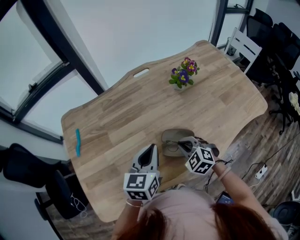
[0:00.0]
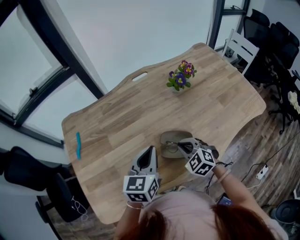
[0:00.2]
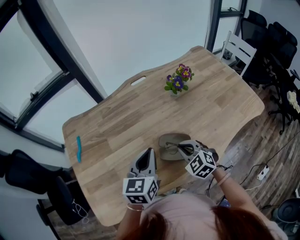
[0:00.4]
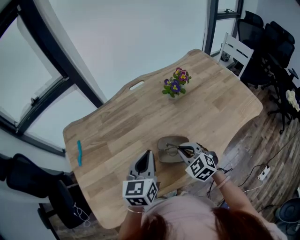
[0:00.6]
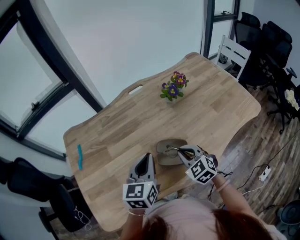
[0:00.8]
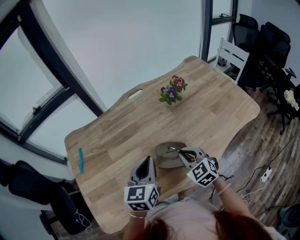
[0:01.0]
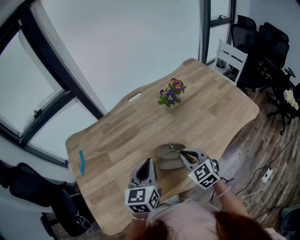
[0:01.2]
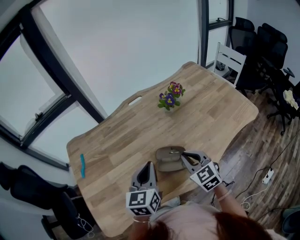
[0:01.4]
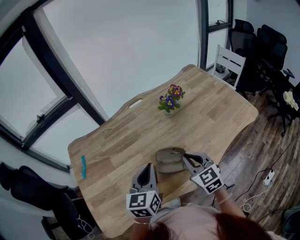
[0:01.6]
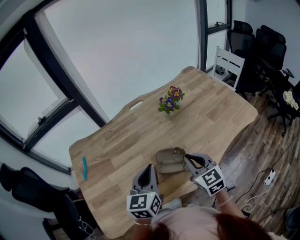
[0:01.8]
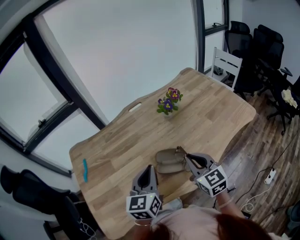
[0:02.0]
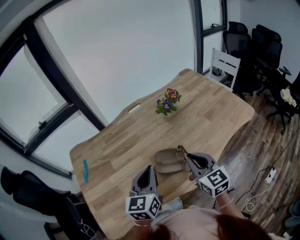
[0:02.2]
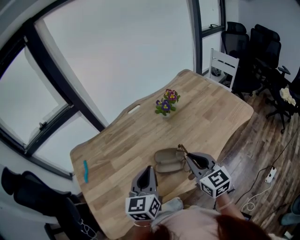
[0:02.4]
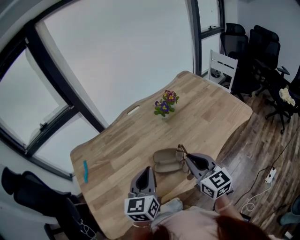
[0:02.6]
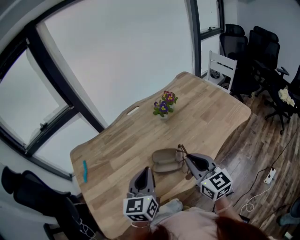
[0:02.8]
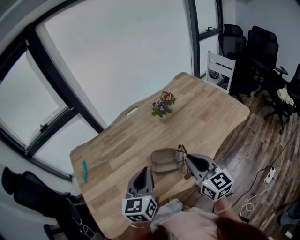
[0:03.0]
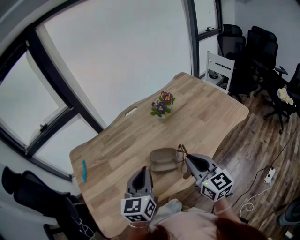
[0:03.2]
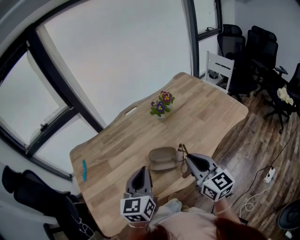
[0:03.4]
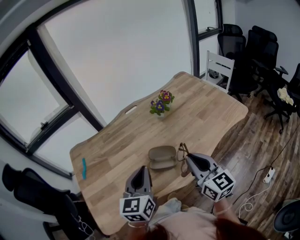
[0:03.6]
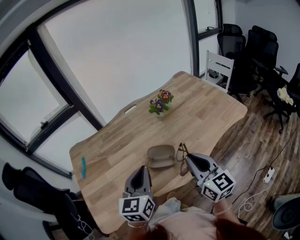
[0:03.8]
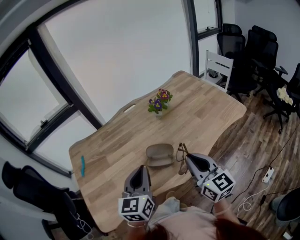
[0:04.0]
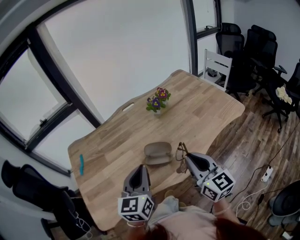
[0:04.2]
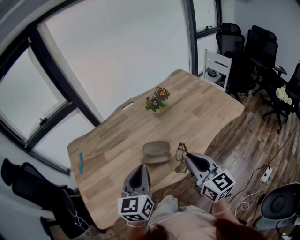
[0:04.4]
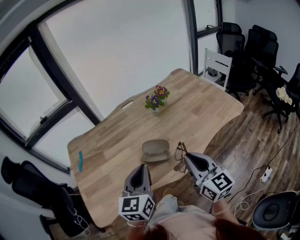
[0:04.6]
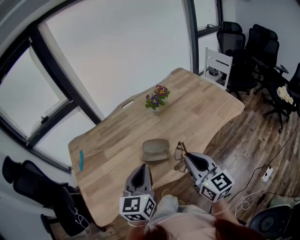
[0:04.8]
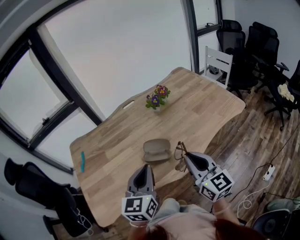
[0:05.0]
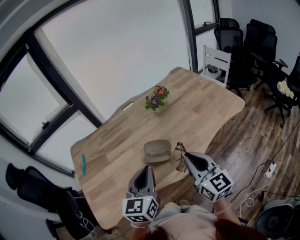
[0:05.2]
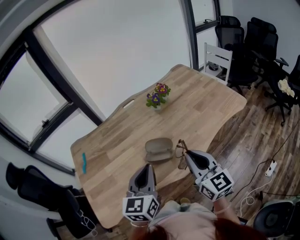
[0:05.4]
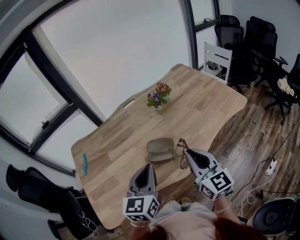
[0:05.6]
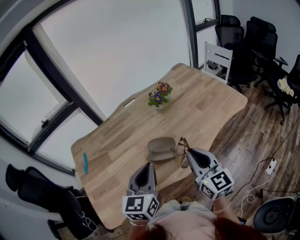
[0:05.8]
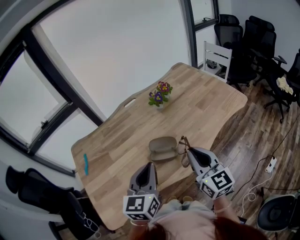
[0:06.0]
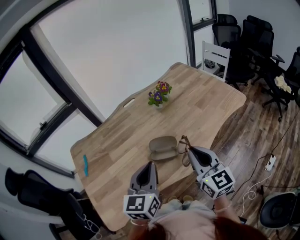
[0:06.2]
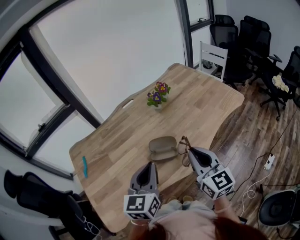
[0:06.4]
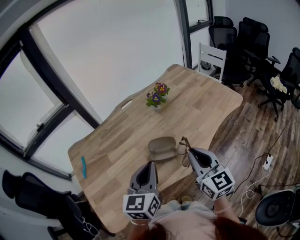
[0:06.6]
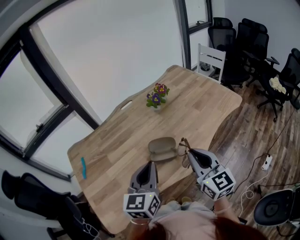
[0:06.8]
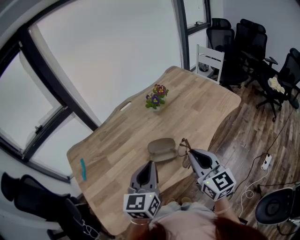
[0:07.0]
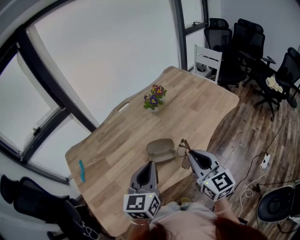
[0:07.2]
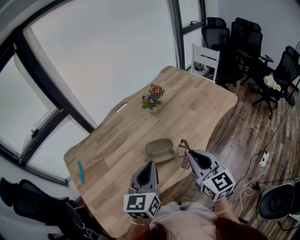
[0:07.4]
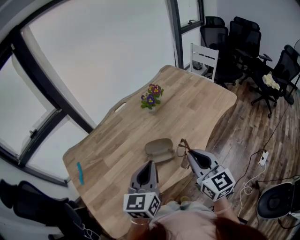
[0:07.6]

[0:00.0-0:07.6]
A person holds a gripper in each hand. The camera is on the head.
0:00.0 to 0:01.6: The left gripper travels upward by some 5 cm; the right gripper goes about 15 cm upward and to the right, and swivels roughly 40 degrees.
0:01.6 to 0:03.0: The left gripper moves backward, some 5 cm, while the right gripper shifts about 10 cm upward and backward, and changes its angle by about 30 degrees.
0:03.0 to 0:04.6: The grippers both shift backward by approximately 5 cm.
0:04.6 to 0:07.6: There are only small adjustments of the grippers.

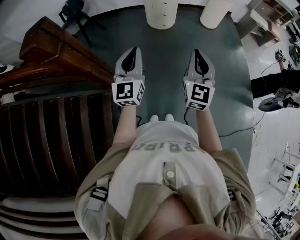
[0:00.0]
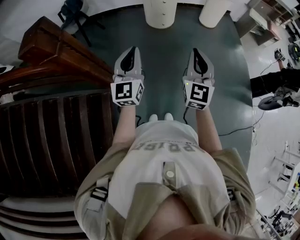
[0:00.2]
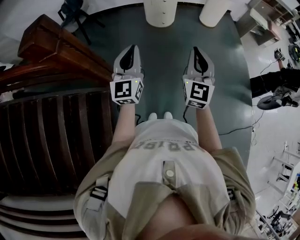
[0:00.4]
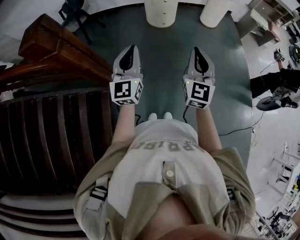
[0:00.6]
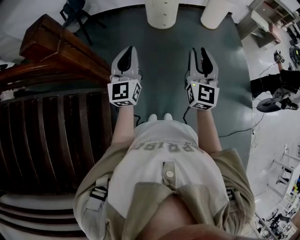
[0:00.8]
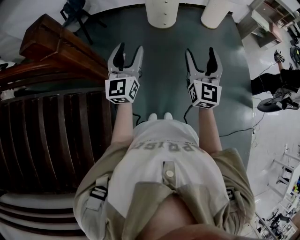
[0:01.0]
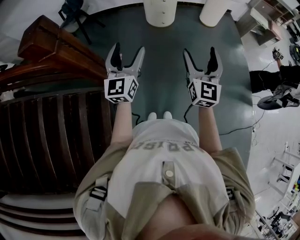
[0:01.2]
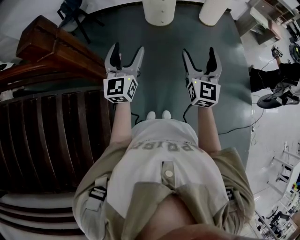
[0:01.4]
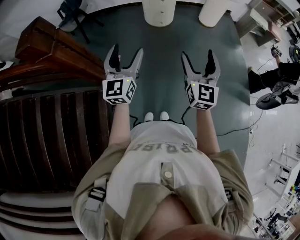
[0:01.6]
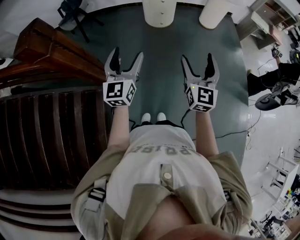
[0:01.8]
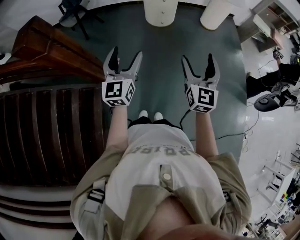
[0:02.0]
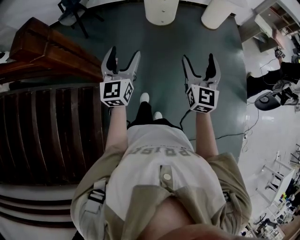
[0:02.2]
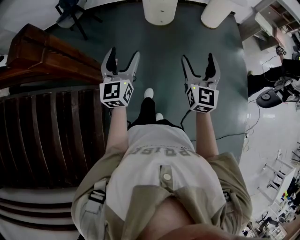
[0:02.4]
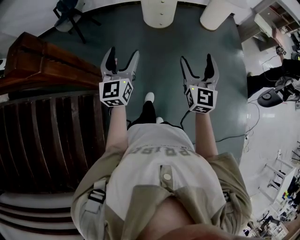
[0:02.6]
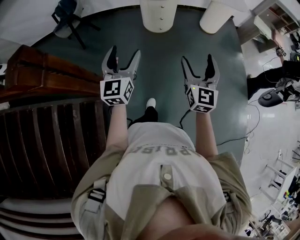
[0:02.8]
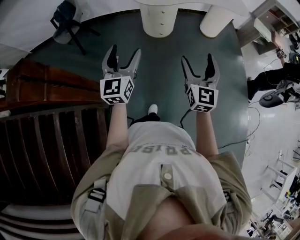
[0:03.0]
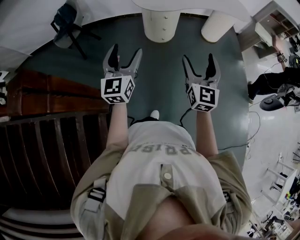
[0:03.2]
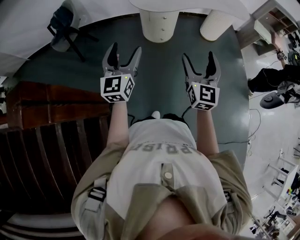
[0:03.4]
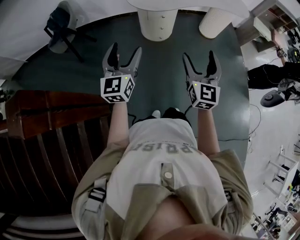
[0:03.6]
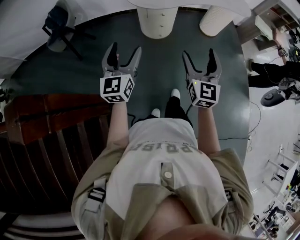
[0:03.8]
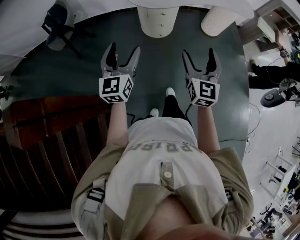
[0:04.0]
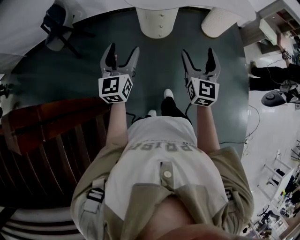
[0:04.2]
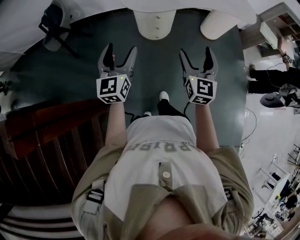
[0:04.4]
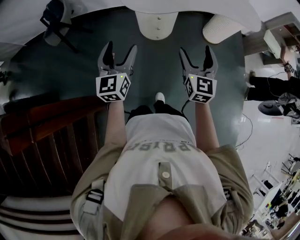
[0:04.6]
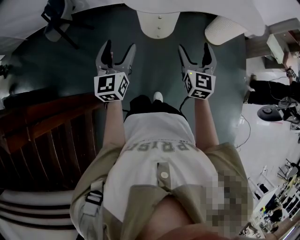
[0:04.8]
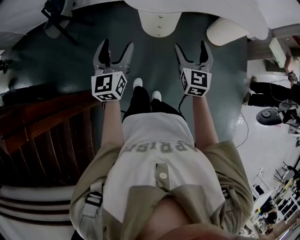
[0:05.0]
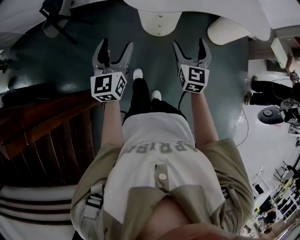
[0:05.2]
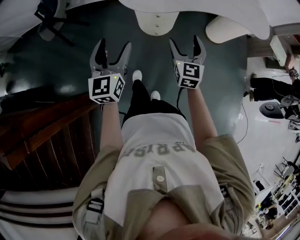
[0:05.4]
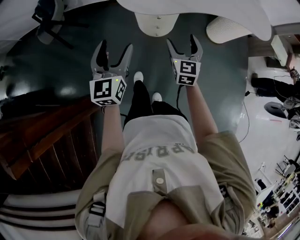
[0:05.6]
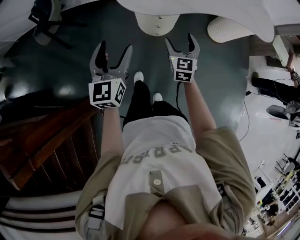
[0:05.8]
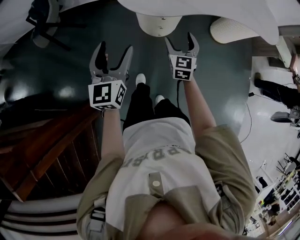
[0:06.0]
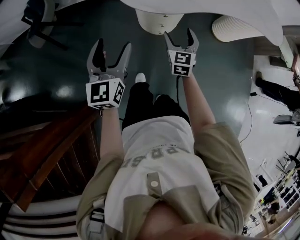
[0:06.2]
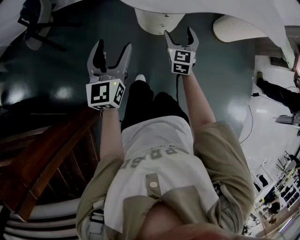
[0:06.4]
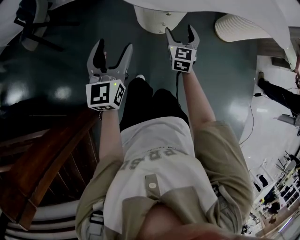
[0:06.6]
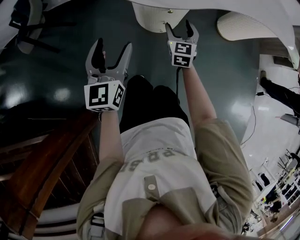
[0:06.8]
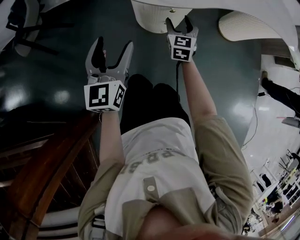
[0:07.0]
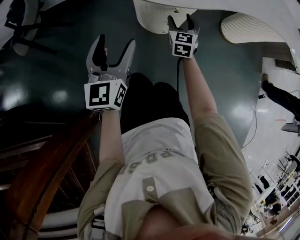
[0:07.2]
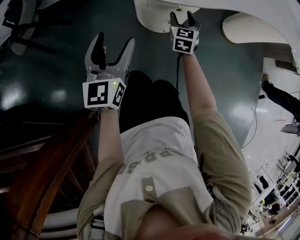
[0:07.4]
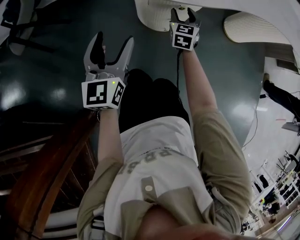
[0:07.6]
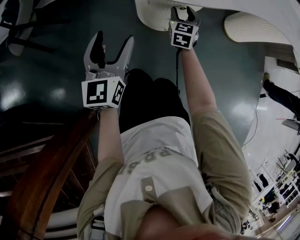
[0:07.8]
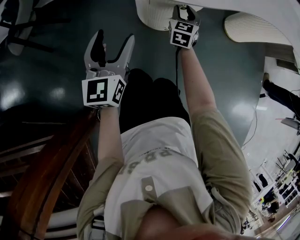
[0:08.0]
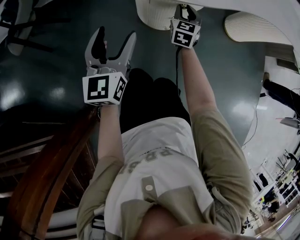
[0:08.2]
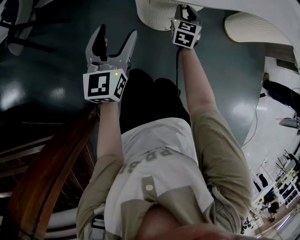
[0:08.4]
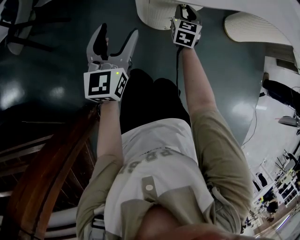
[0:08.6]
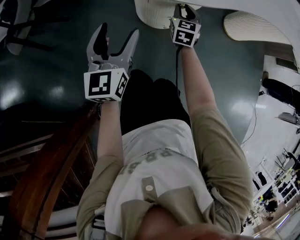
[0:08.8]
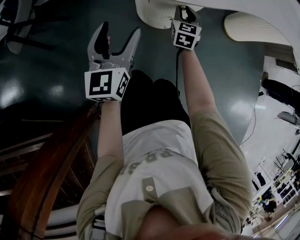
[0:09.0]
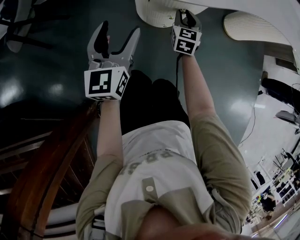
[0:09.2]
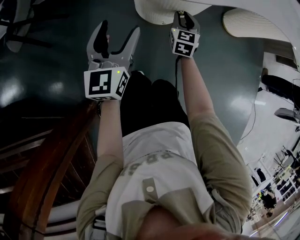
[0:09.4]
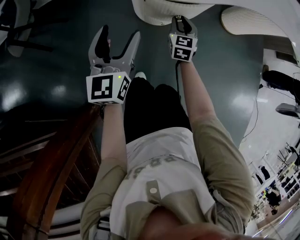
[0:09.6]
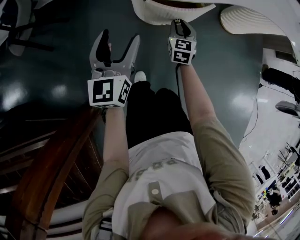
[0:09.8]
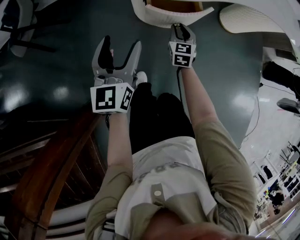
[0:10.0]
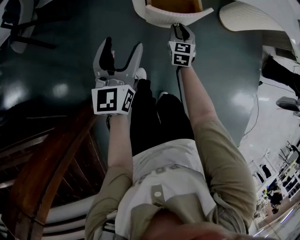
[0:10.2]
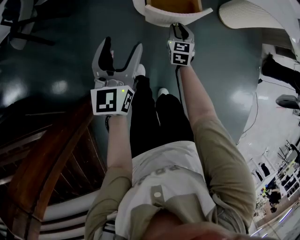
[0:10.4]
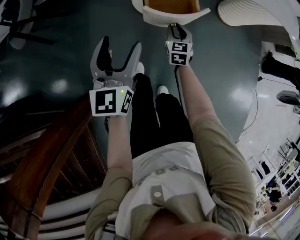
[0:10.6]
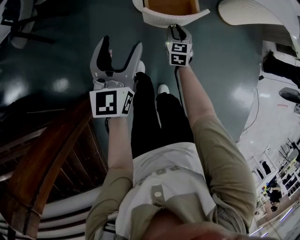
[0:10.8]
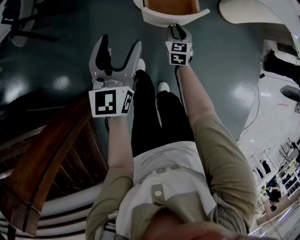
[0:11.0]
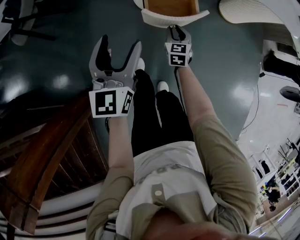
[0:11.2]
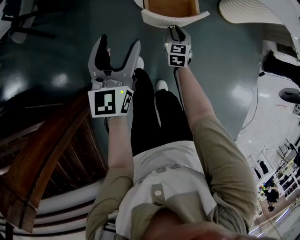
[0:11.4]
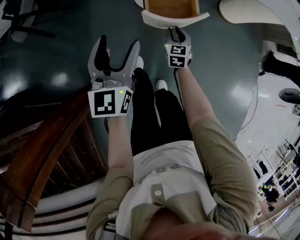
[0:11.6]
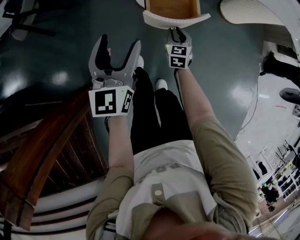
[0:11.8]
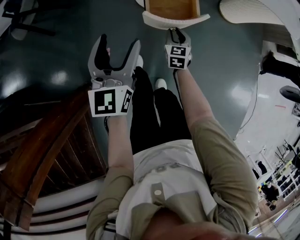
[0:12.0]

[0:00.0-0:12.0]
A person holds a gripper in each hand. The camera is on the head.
0:00.0 to 0:01.6: The right gripper opens. Meanwhile the left gripper opens up.
0:01.6 to 0:03.0: The left gripper shifts some 15 cm forward. The right gripper moves forward and backward over roughly 20 cm, changing direction 2 times.
0:03.0 to 0:04.4: Both grippers move forward, roughly 20 cm.
0:04.4 to 0:06.0: The right gripper goes roughly 35 cm forward and downward, while the left gripper heads forward and downward, covering roughly 20 cm.
0:06.0 to 0:07.6: Both grippers travel together downward and forward, some 30 cm. The right gripper closes.
0:07.6 to 0:09.0: The grippers make only small movements.
0:09.0 to 0:10.4: The left gripper shifts roughly 10 cm backward and upward. The right gripper shifts roughly 15 cm backward.
0:10.4 to 0:12.0: The left gripper ends up approximately 5 cm from where it was; the right gripper goes approximately 5 cm backward.

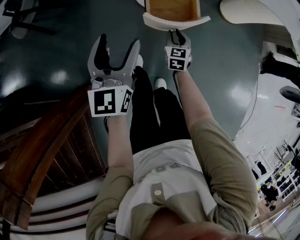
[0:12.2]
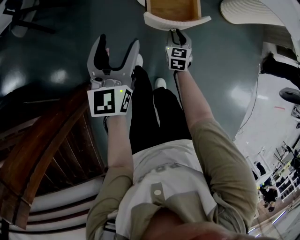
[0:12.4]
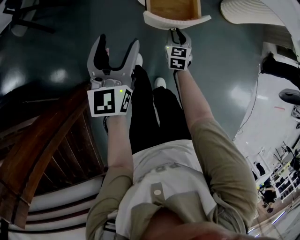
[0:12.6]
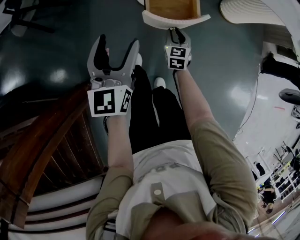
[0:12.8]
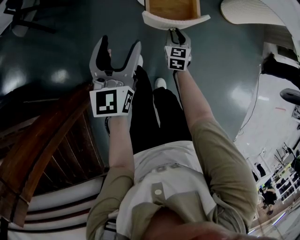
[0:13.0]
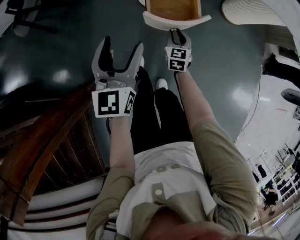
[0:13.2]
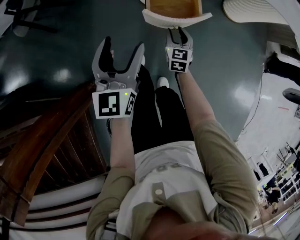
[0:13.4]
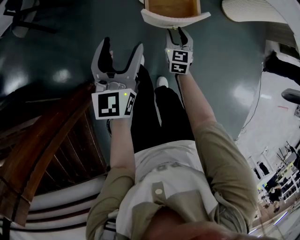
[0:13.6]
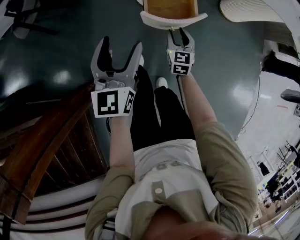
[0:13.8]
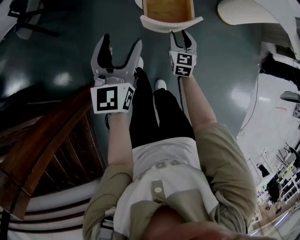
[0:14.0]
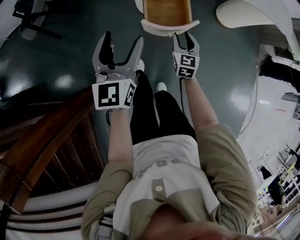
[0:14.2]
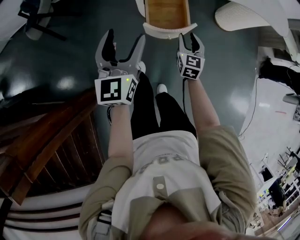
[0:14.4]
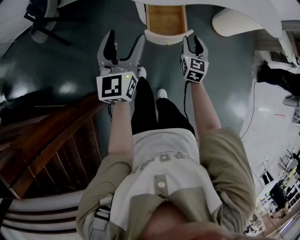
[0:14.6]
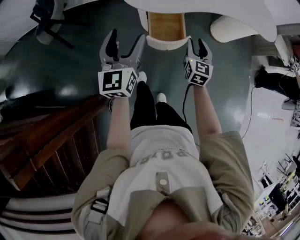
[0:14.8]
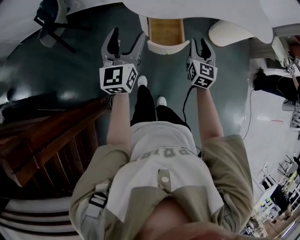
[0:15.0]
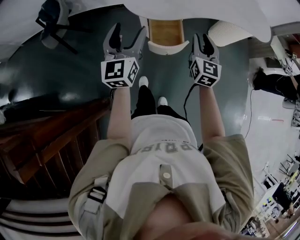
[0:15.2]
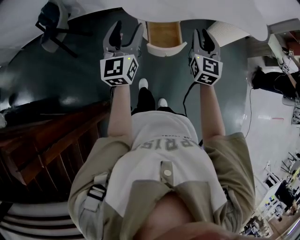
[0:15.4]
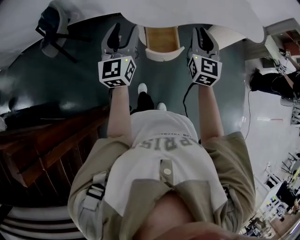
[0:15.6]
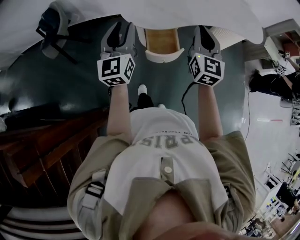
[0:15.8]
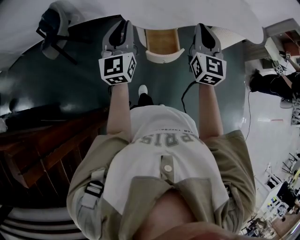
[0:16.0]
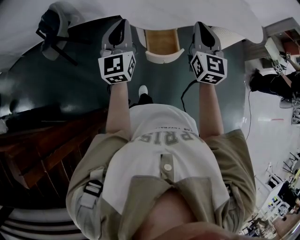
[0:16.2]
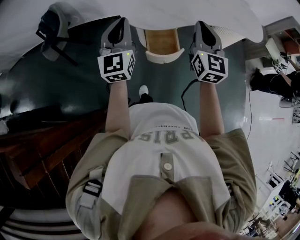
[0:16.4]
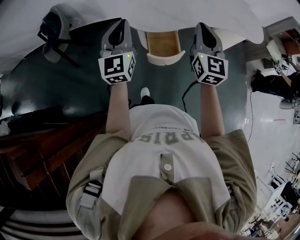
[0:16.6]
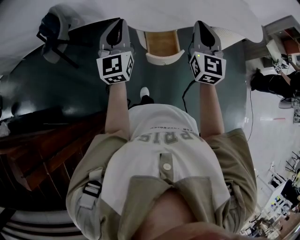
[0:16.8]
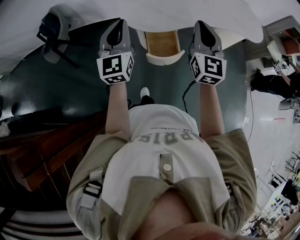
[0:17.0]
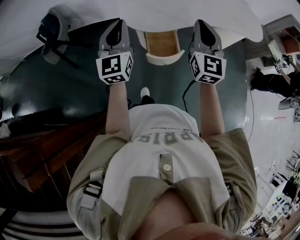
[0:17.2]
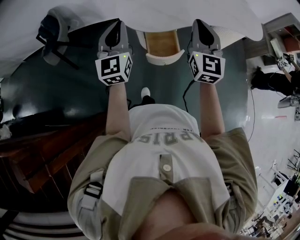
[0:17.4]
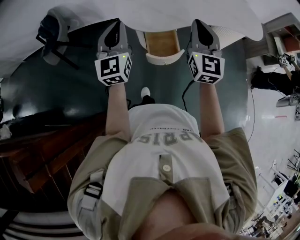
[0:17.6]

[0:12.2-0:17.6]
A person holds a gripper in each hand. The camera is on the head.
0:12.2 to 0:13.6: The grippers stay close to where they were, moving slightly.
0:13.6 to 0:15.0: The left gripper heads upward, covering roughly 20 cm, while the right gripper is displaced upward by about 35 cm.
0:15.0 to 0:16.2: The right gripper moves upward, approximately 20 cm, and closes up, while the left gripper is displaced upward by approximately 10 cm, and closes its fingers.
0:16.2 to 0:17.6: The grippers move only a little.
